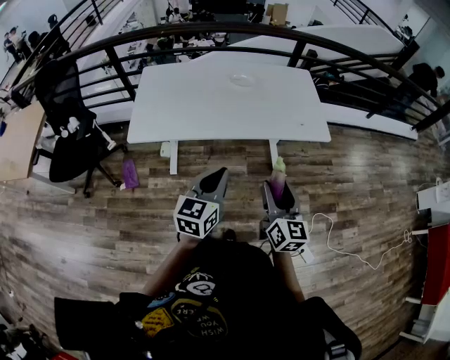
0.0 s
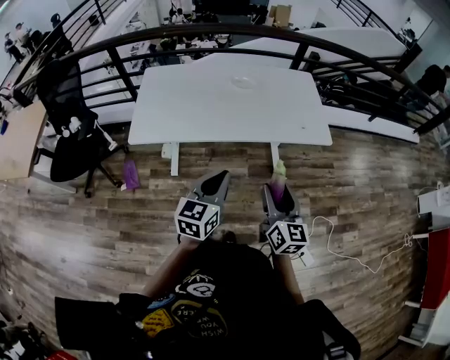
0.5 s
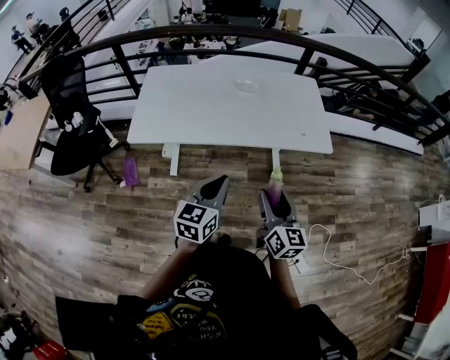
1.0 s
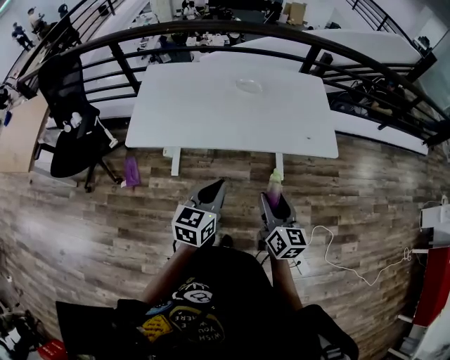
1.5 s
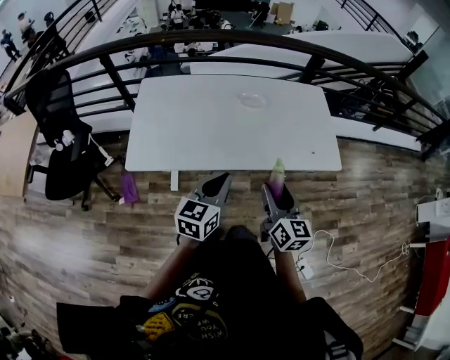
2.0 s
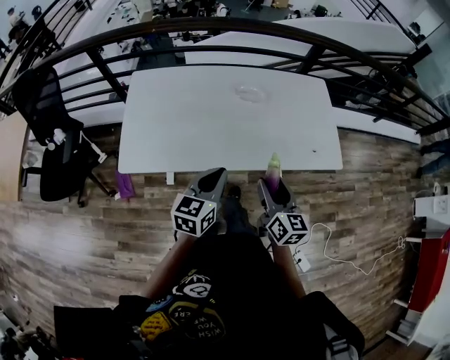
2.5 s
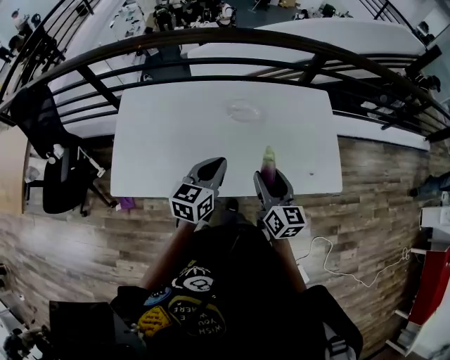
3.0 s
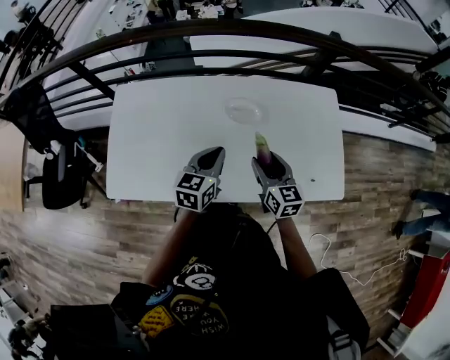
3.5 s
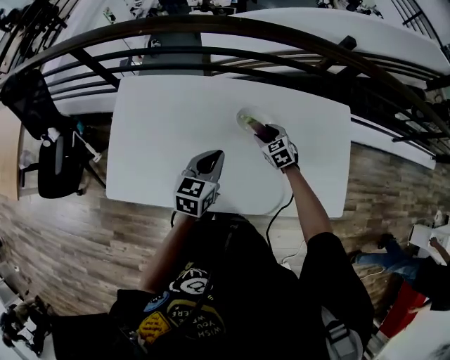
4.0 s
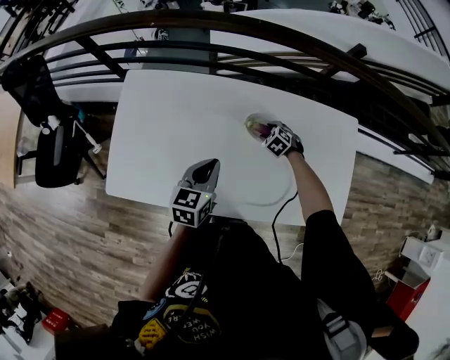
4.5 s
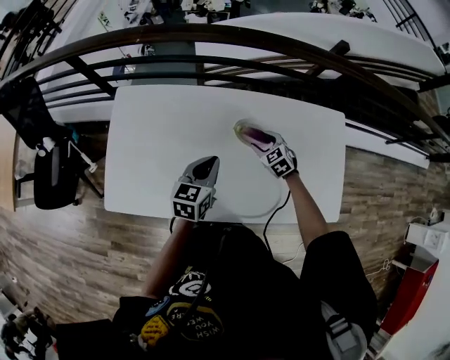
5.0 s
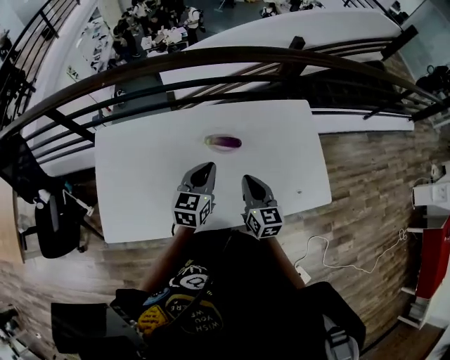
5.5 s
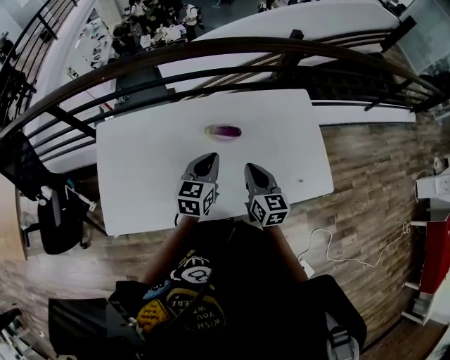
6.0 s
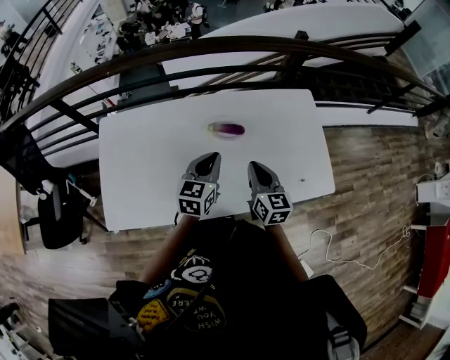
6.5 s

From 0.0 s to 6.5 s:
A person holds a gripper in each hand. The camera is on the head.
From 0.0 s to 2.0 s: The right gripper moves forward and to the left, some 20 cm, while the left gripper travels forward by roughly 20 cm.
From 2.0 s to 4.5 s: The left gripper moves forward, about 40 cm. Meanwhile the right gripper is displaced forward and downward by approximately 70 cm, and tilts its fingers some 60 degrees downward.
From 4.5 s to 6.5 s: The right gripper shifts roughly 35 cm upward and backward, tilts its fingers approximately 50 degrees upward, and closes. The left gripper goes approximately 10 cm to the right and upward.

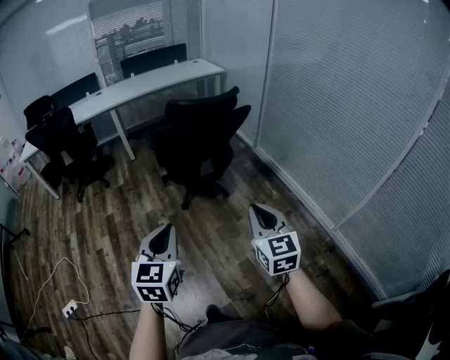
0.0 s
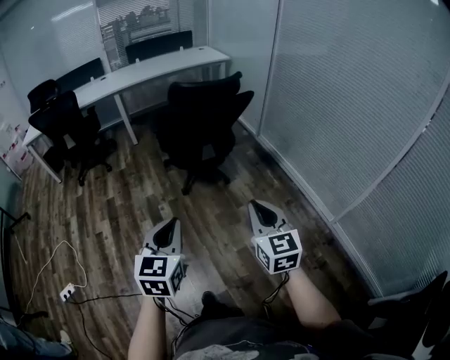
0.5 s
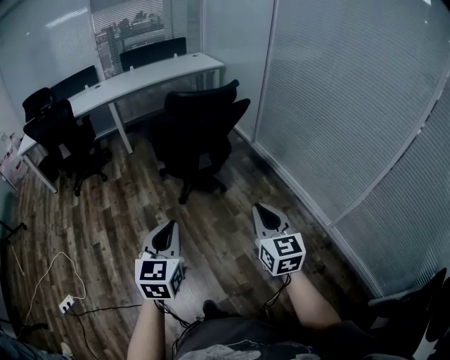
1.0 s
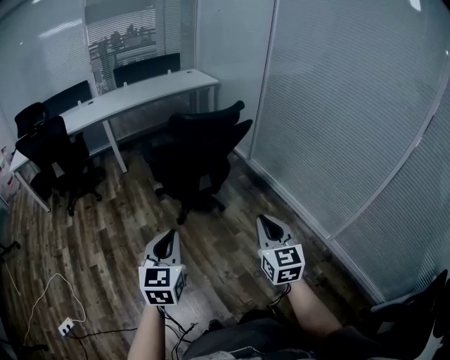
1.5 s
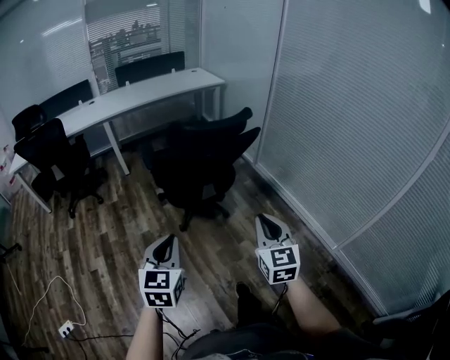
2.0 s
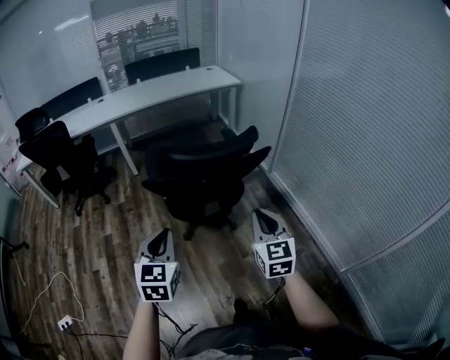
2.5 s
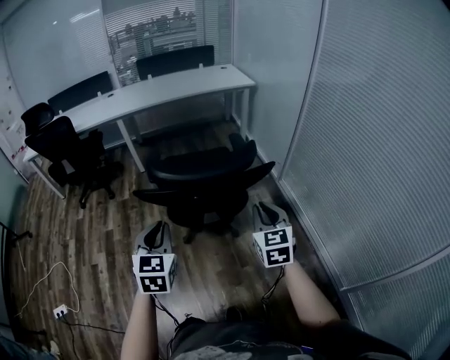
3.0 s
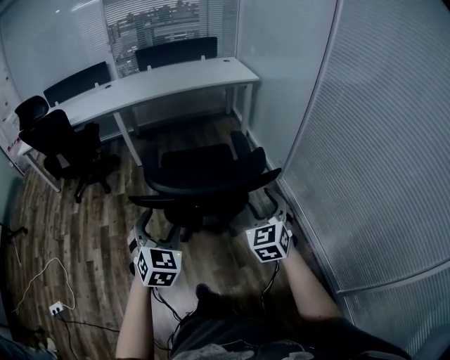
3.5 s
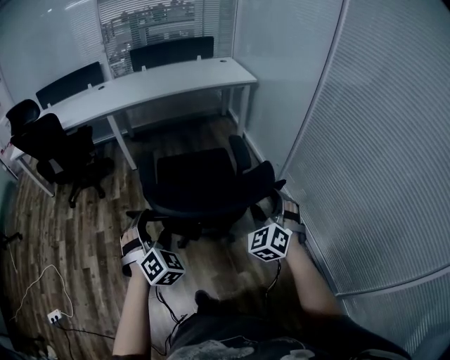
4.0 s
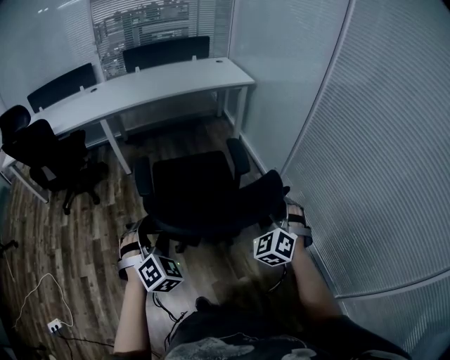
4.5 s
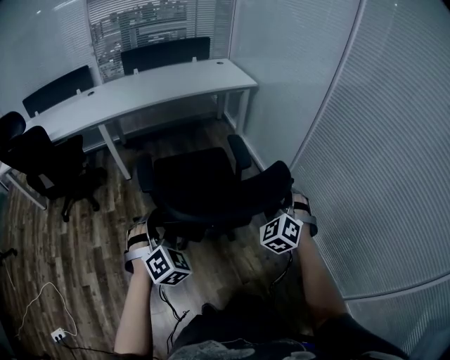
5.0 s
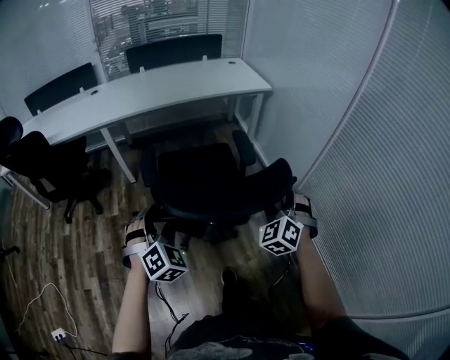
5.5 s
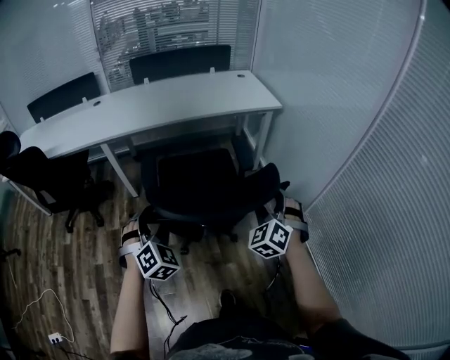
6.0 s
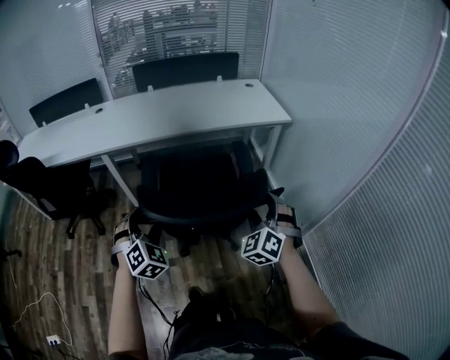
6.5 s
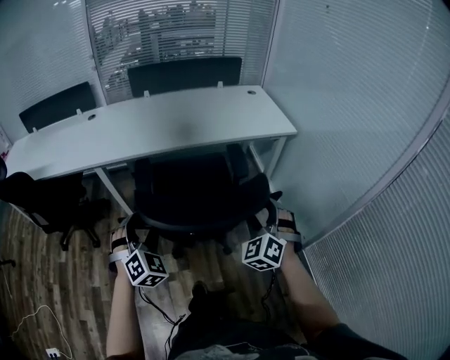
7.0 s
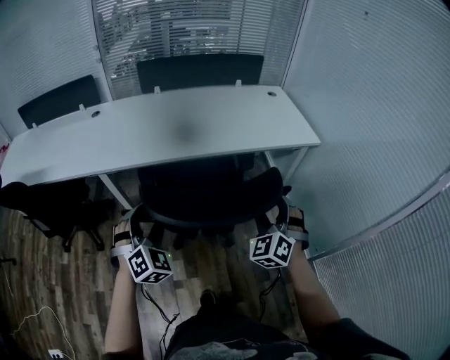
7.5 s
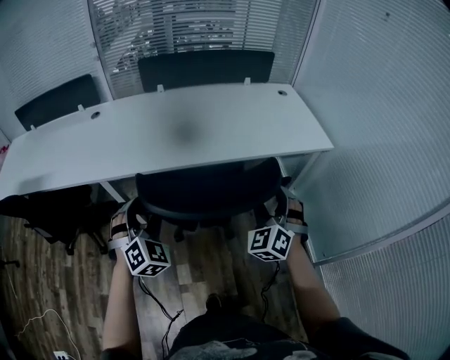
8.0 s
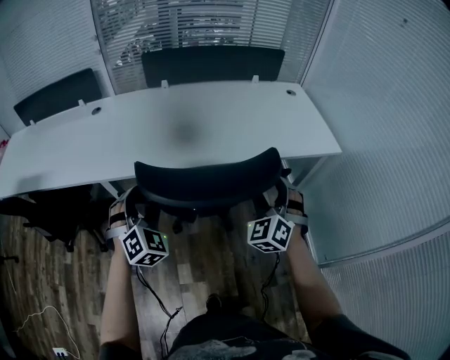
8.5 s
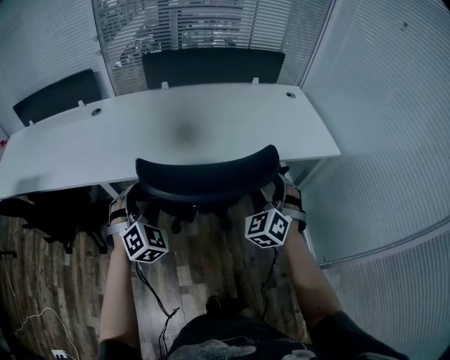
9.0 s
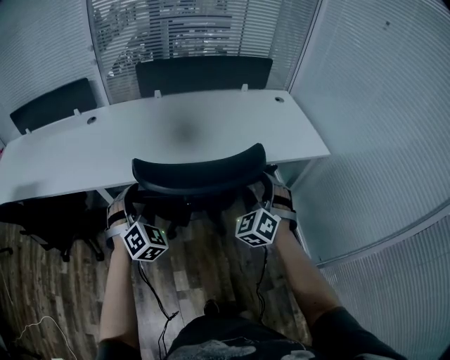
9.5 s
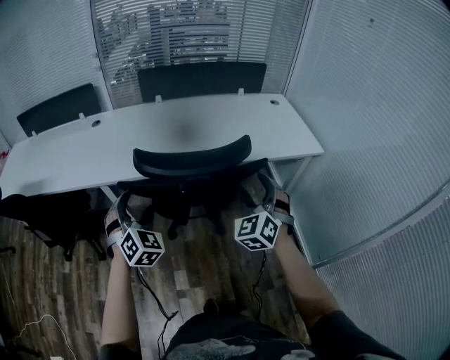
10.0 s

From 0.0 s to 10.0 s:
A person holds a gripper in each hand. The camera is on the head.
From 0.0 s to 2.0 s: Both grippers move forward, approximately 15 cm.
From 2.0 s to 4.0 s: The two grippers go some 35 cm forward. The left gripper turns by approximately 50 degrees, and opens its fingers. The right gripper rolls counterclockwise, seen from behind, by approximately 50 degrees, and opens up.
From 4.0 s to 6.0 s: The two grippers go approximately 40 cm forward.
From 6.0 s to 8.0 s: The two grippers travel together, forward, about 40 cm.
From 8.0 s to 10.0 s: The right gripper moves about 10 cm forward and comes back, while the left gripper travels forward and back again, roughly 5 cm each way.

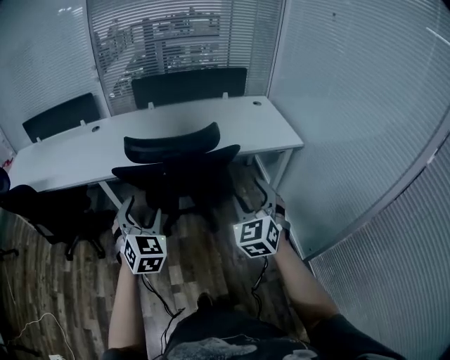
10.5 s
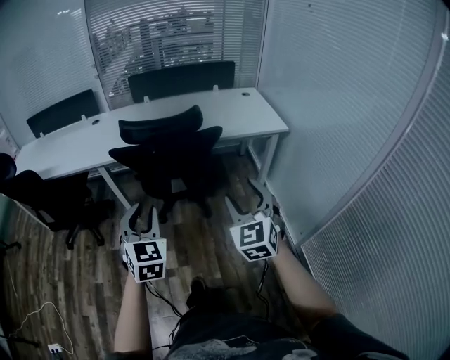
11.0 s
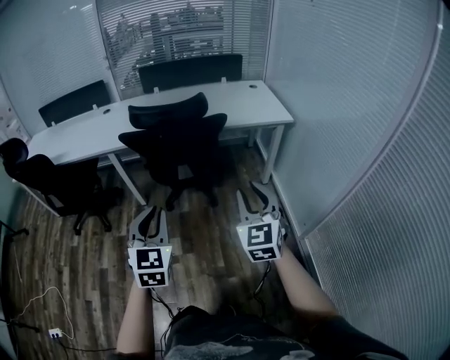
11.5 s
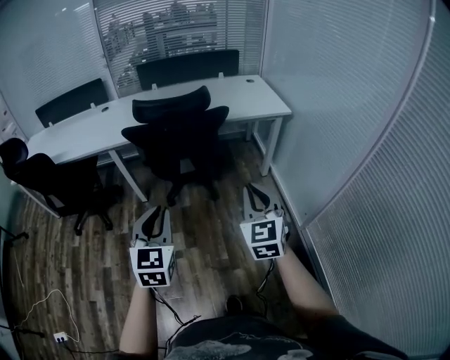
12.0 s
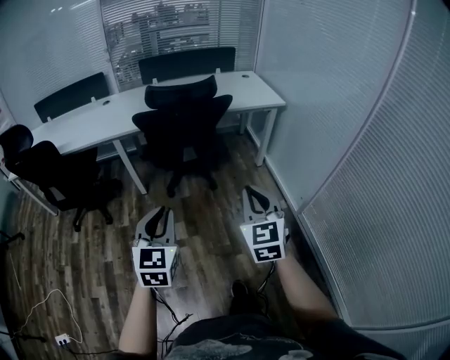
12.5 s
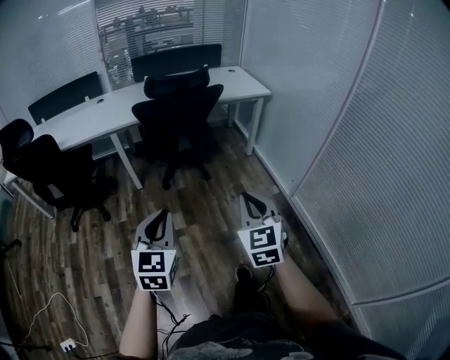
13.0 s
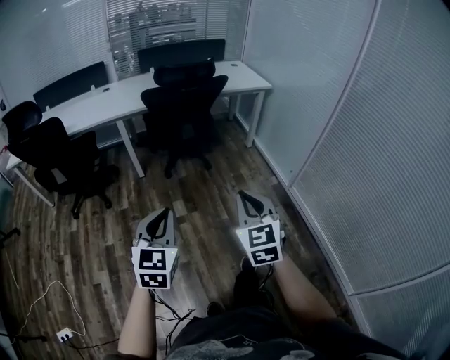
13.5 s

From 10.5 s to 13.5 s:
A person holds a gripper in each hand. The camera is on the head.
From 10.5 s to 12.0 s: Both grippers travel together backward, about 25 cm. The left gripper rotates about 20 degrees, and closes. The right gripper closes up.
From 12.0 s to 13.5 s: The two grippers go approximately 35 cm backward and to the left.

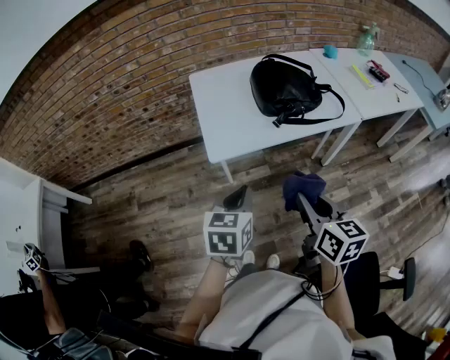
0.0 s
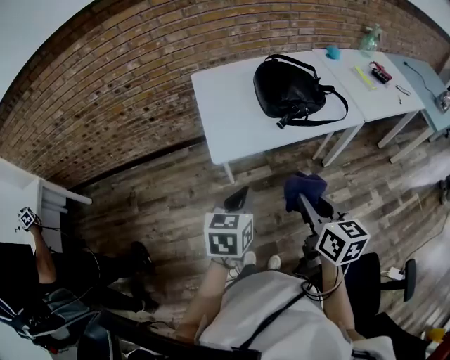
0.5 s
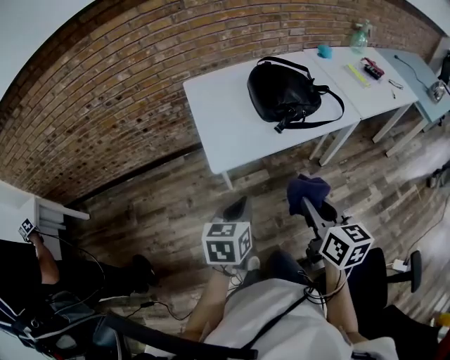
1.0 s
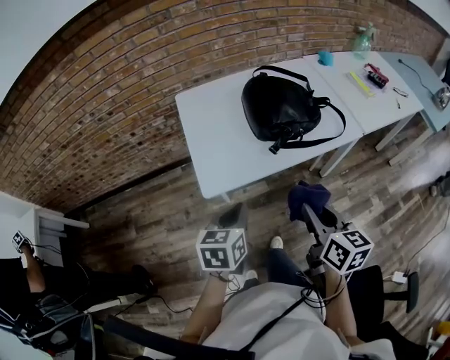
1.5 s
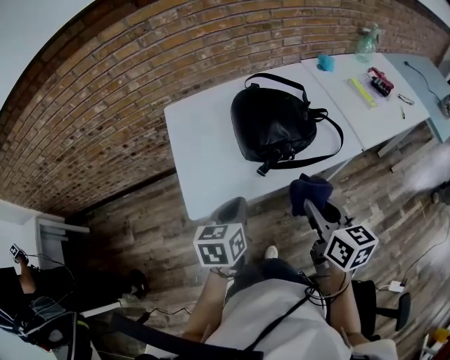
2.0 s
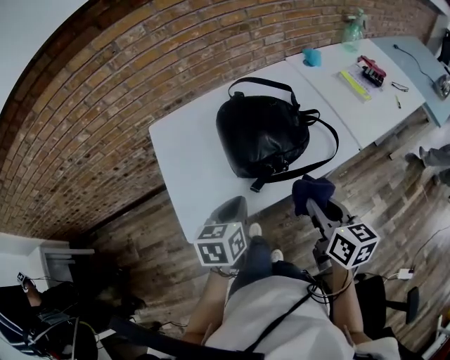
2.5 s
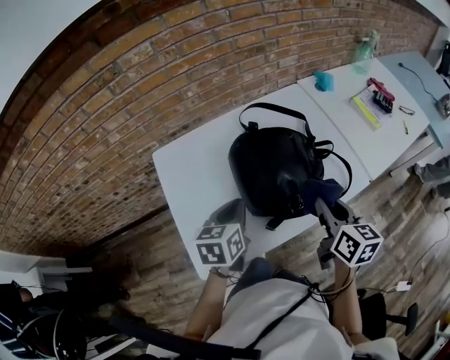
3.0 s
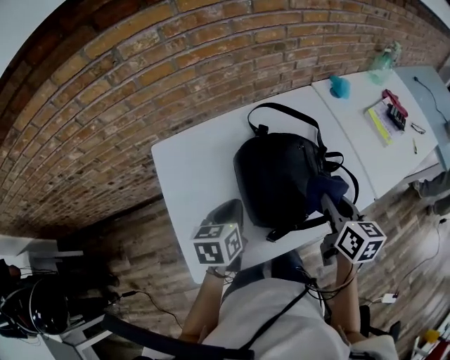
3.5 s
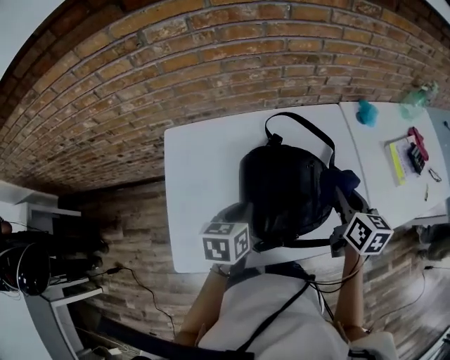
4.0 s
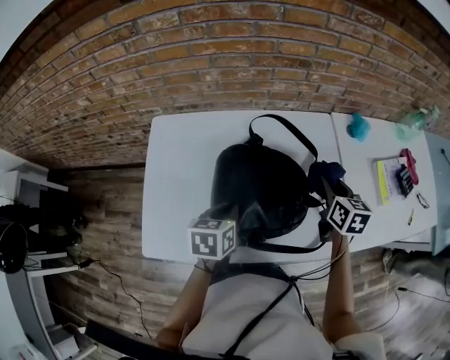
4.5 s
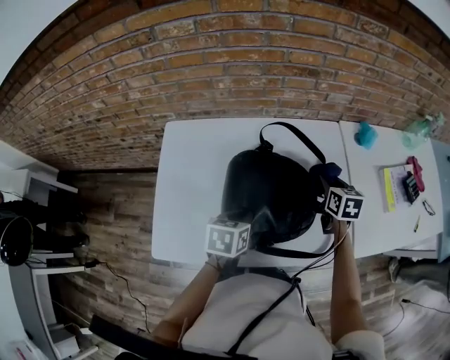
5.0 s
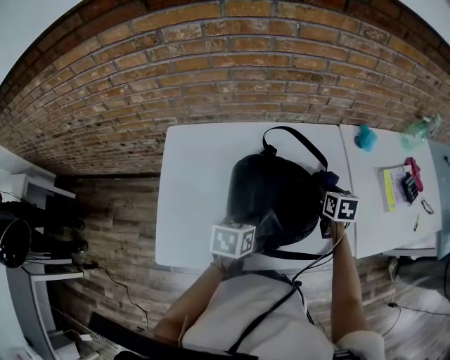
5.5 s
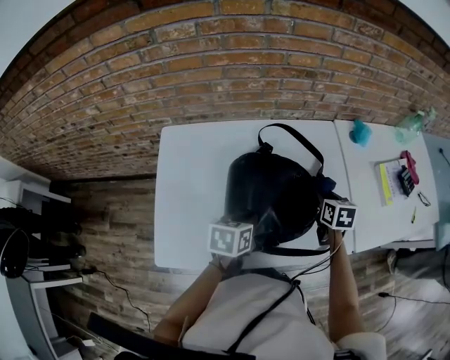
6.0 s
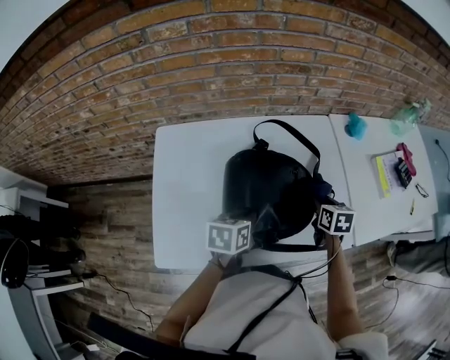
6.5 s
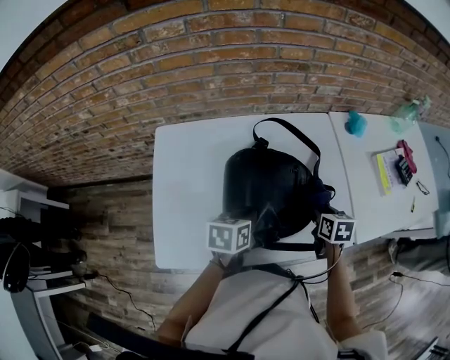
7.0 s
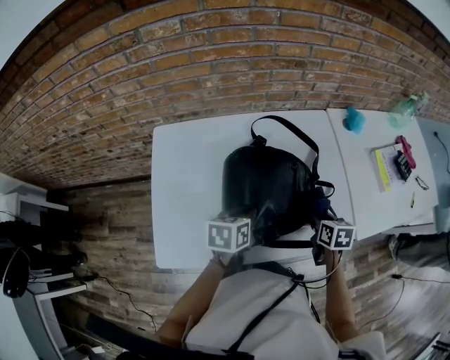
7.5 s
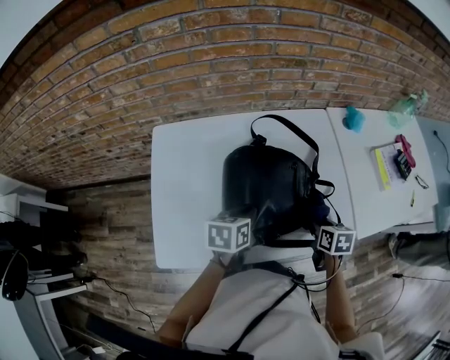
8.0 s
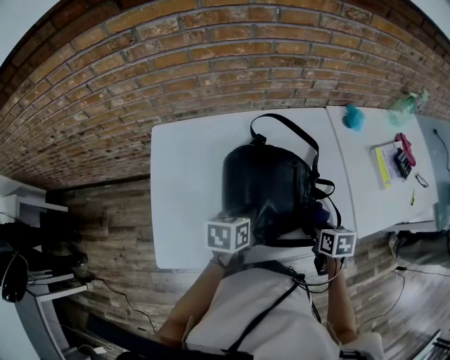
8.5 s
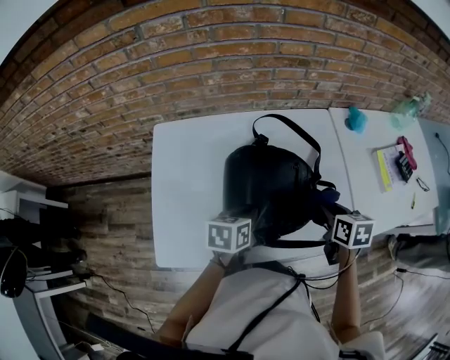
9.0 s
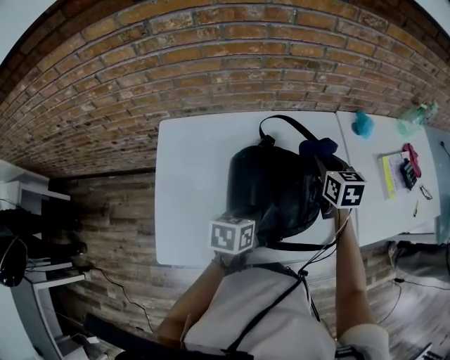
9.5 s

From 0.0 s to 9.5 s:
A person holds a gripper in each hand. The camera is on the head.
From 0.0 s to 2.0 s: The left gripper travels forward by about 20 cm. Meanwhile the right gripper heads forward and to the right, covering about 20 cm.
From 2.0 s to 4.0 s: Both grippers travel together forward, roughly 30 cm.
From 4.0 s to 5.5 s: The left gripper shifts about 5 cm to the right. The right gripper shifts roughly 15 cm downward and forward, and turns by approximately 20 degrees.
From 5.5 s to 7.5 s: The right gripper goes about 15 cm backward.
From 7.5 s to 9.5 s: The right gripper travels forward, upward and to the left by some 20 cm, and swivels about 20 degrees.
